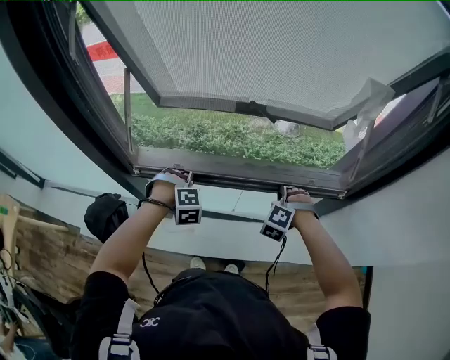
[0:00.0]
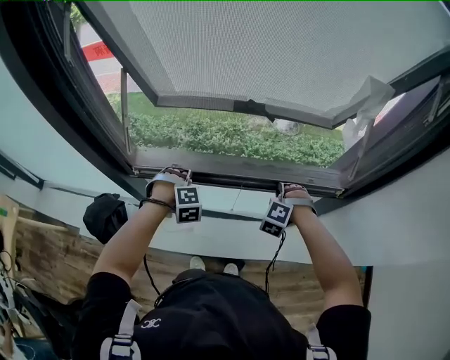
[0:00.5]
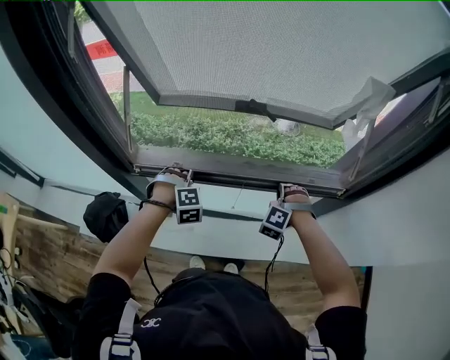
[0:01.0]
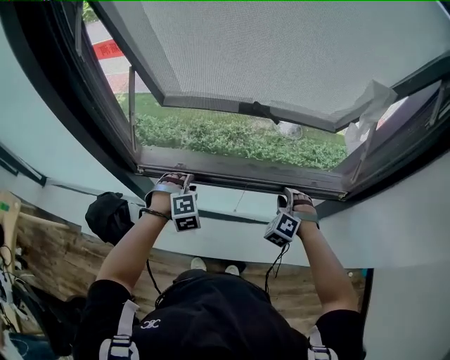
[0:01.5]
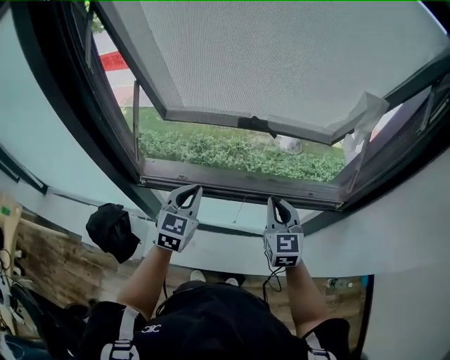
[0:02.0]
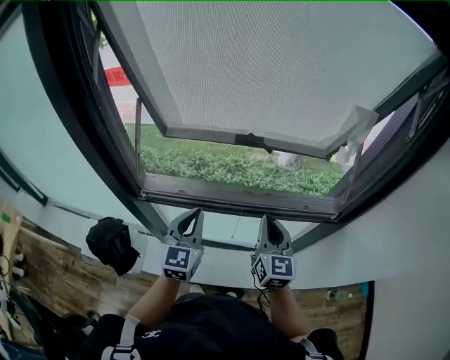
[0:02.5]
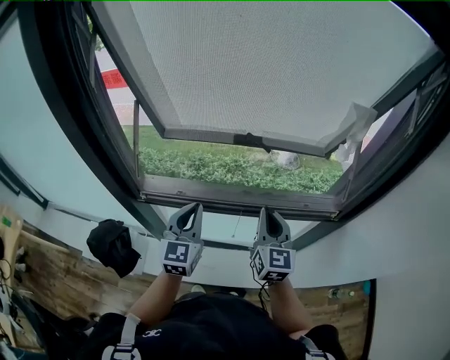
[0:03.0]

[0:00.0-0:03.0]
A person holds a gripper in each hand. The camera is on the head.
0:00.0 to 0:01.5: The right gripper opens up, while the left gripper opens.
0:01.5 to 0:03.0: Both grippers travel together upward, some 15 cm. The right gripper rolls clockwise, seen from behind, by roughly 70 degrees, and closes its fingers, while the left gripper points its fingers roughly 50 degrees further upward, and closes.

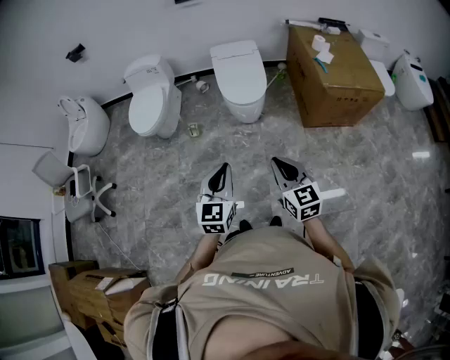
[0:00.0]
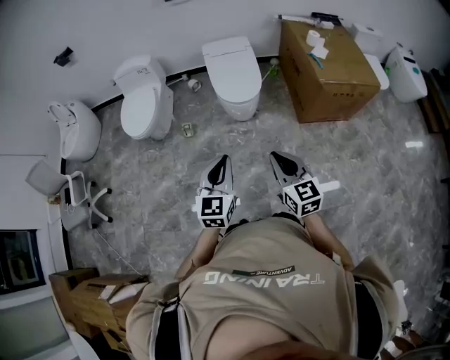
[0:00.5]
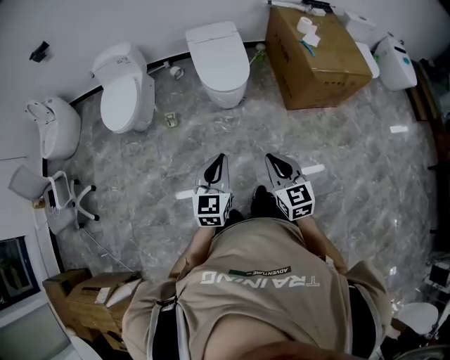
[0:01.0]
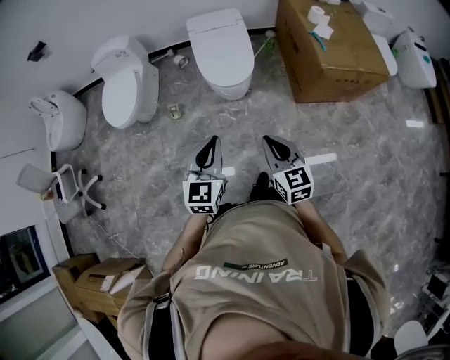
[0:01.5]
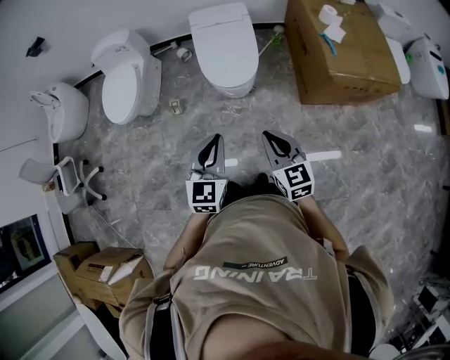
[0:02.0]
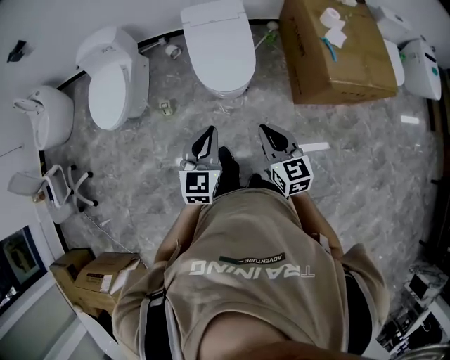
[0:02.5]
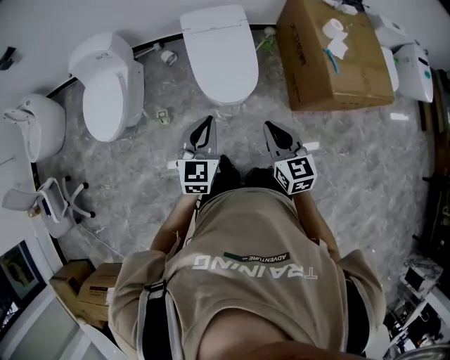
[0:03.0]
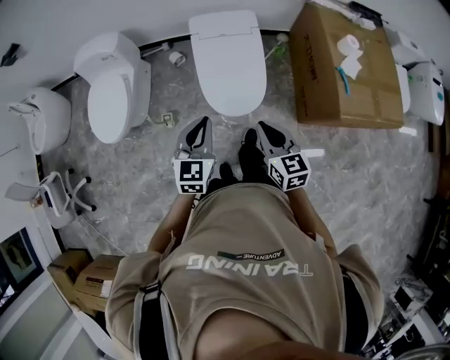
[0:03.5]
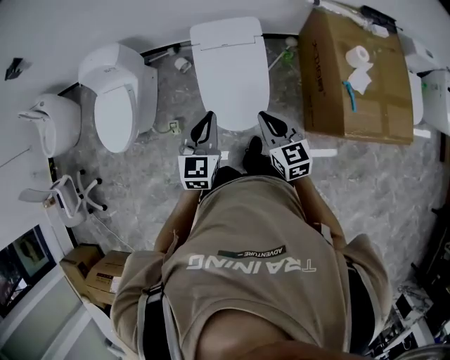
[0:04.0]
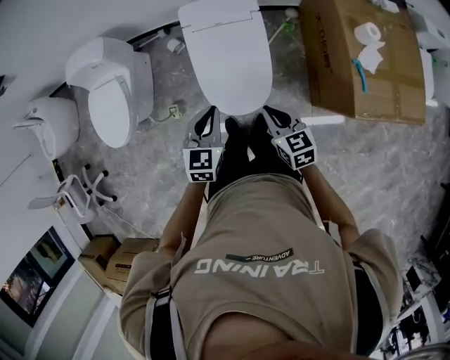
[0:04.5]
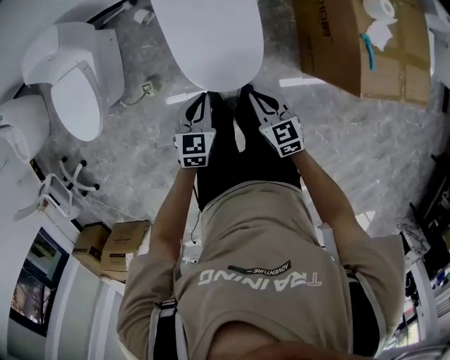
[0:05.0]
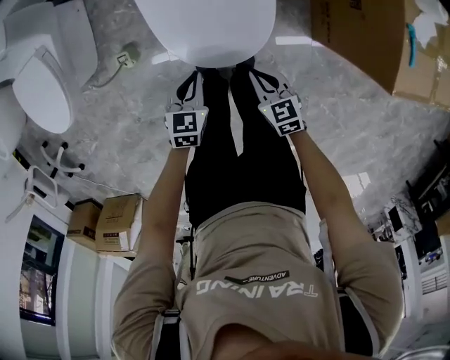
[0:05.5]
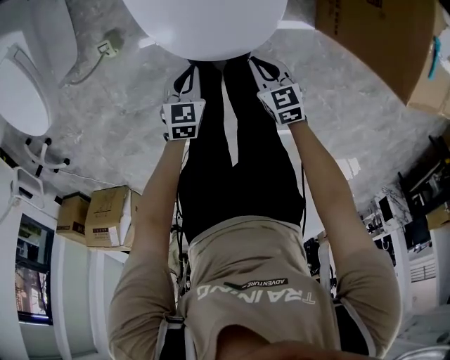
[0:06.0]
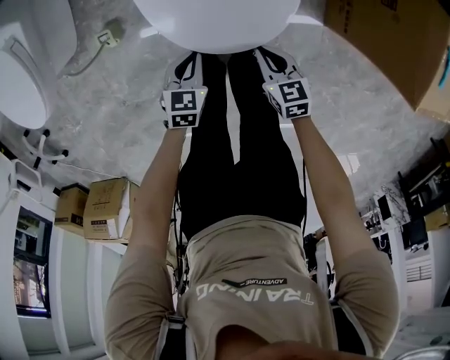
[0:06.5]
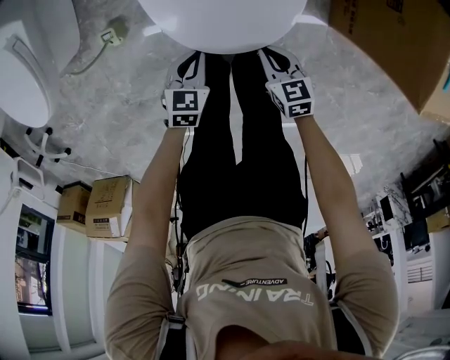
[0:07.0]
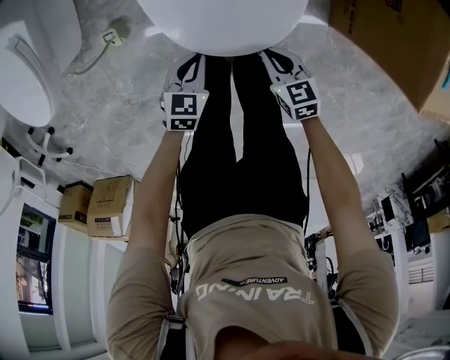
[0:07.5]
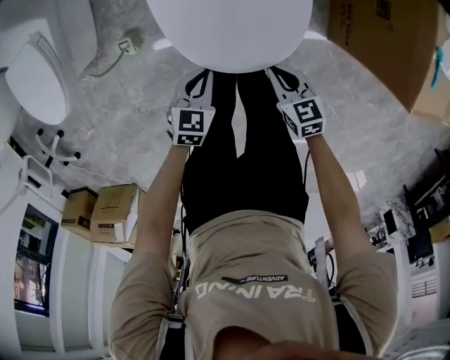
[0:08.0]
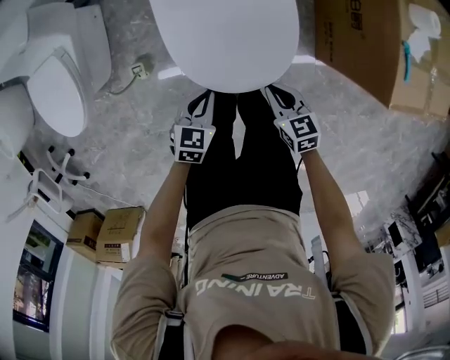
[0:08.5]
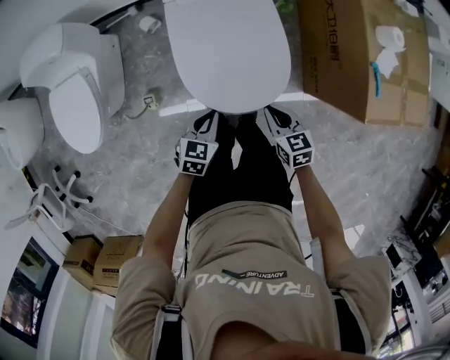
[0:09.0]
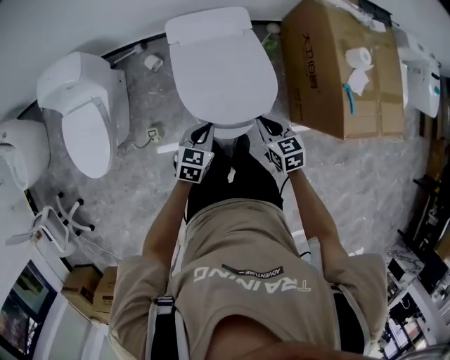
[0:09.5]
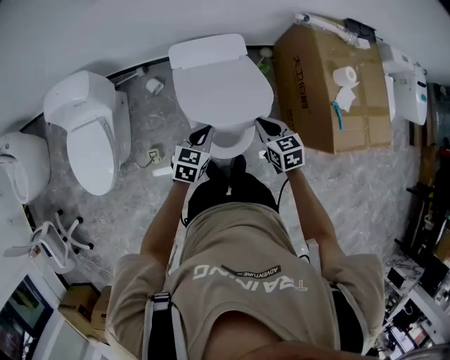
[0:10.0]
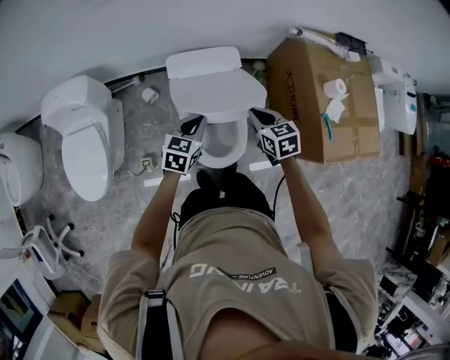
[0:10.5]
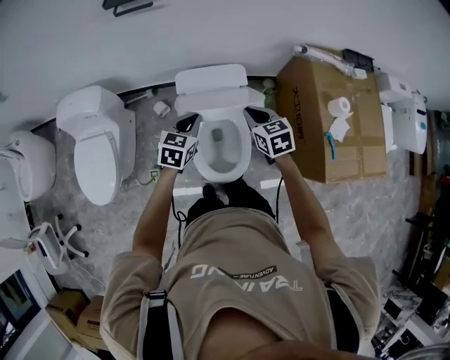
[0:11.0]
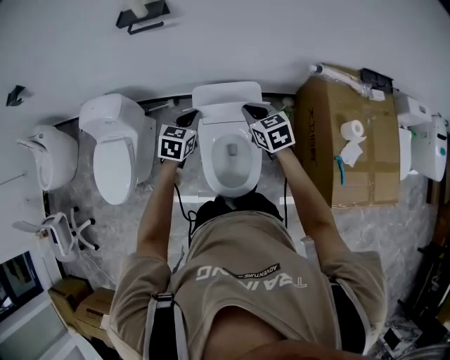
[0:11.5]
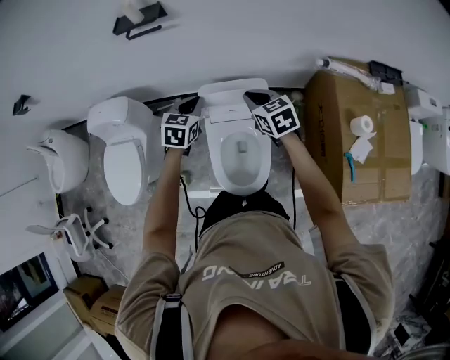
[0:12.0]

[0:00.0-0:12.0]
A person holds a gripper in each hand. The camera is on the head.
0:00.0 to 0:02.0: The right gripper goes approximately 20 cm forward, while the left gripper moves forward and to the right, about 25 cm.
0:02.0 to 0:04.0: The grippers both shift forward by roughly 40 cm.
0:04.0 to 0:06.0: Both grippers move downward, roughly 50 cm. The right gripper swivels approximately 30 degrees, while the left gripper angles its fingers downward, by roughly 30 degrees.
0:06.0 to 0:08.0: The grippers both shift upward by roughly 5 cm.
0:08.0 to 0:10.0: The two grippers go roughly 35 cm upward and forward.
0:10.0 to 0:12.0: Both grippers move forward and upward, about 25 cm.

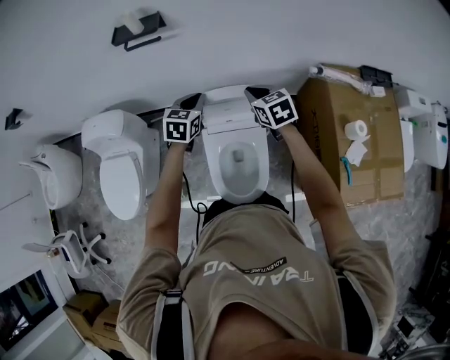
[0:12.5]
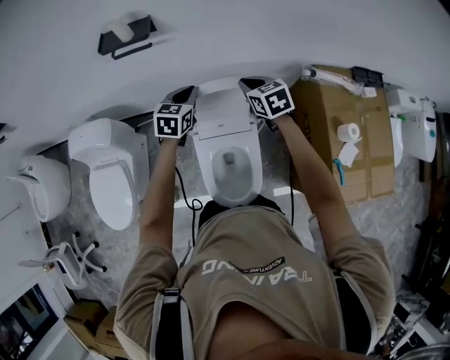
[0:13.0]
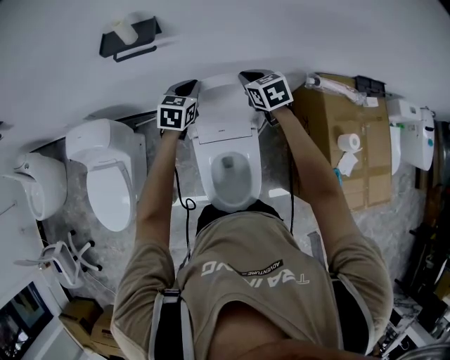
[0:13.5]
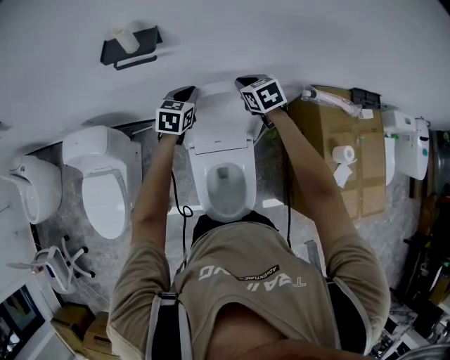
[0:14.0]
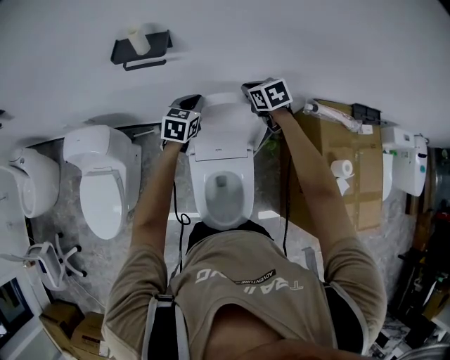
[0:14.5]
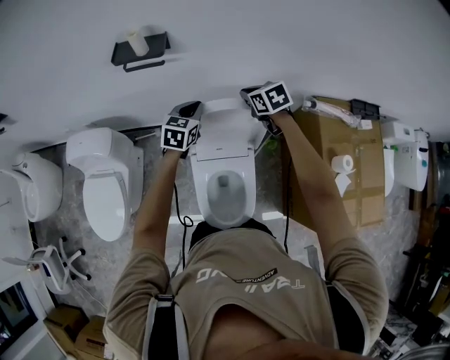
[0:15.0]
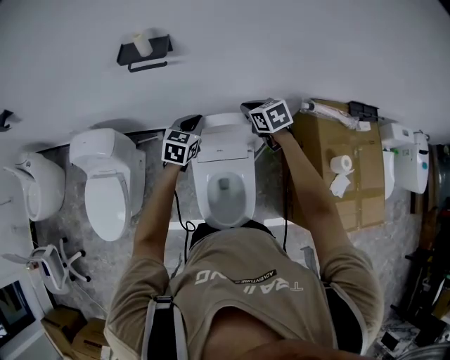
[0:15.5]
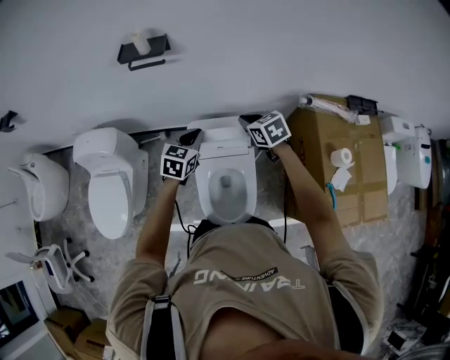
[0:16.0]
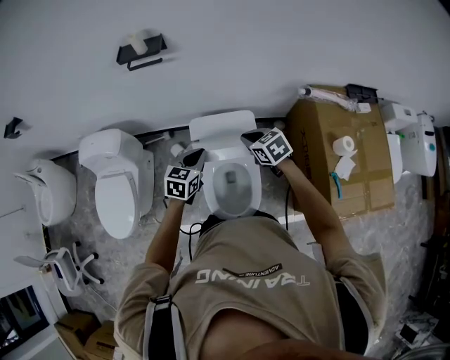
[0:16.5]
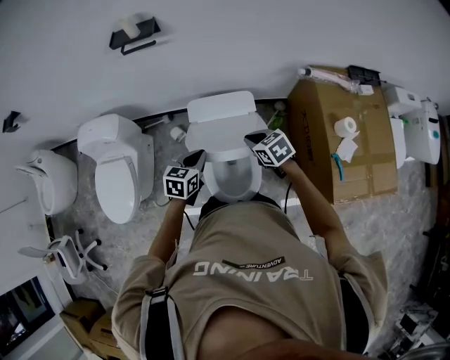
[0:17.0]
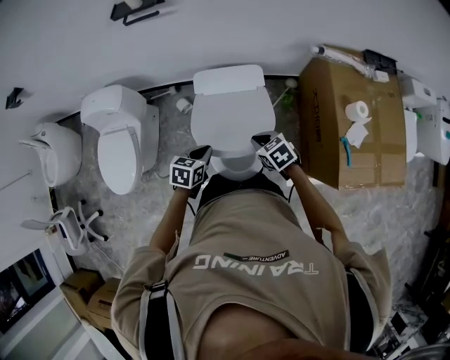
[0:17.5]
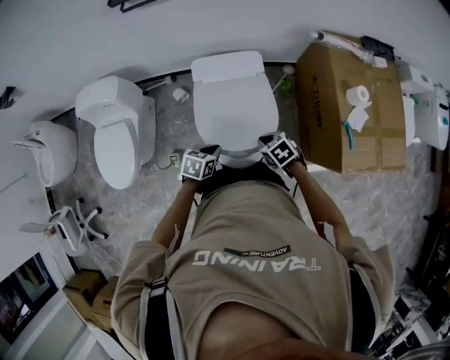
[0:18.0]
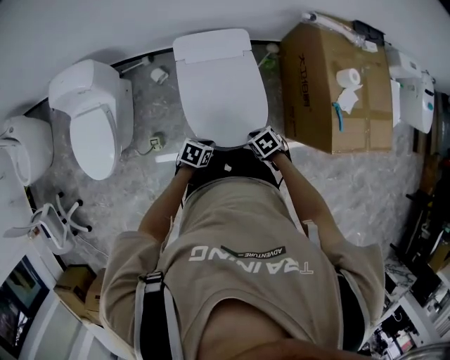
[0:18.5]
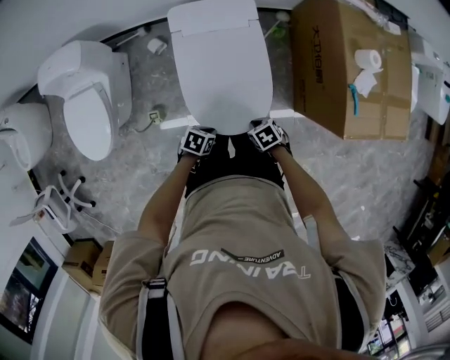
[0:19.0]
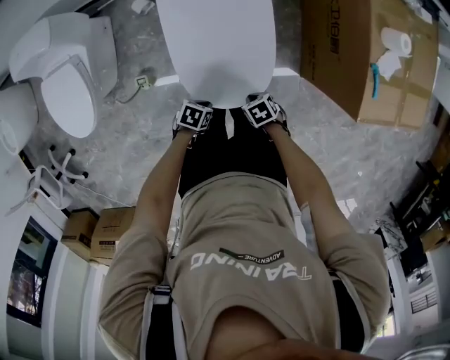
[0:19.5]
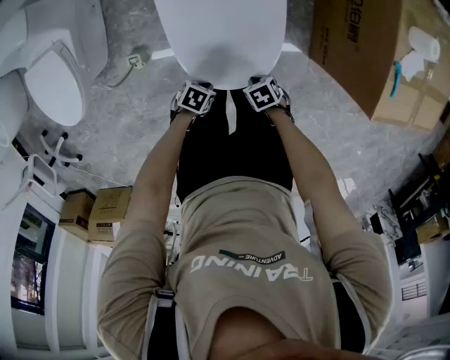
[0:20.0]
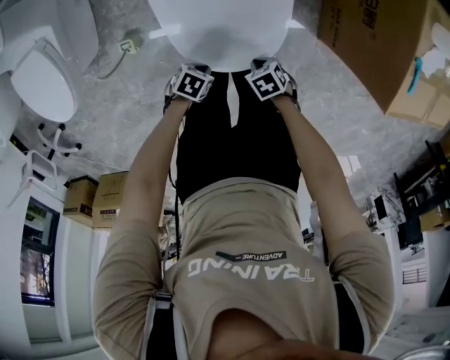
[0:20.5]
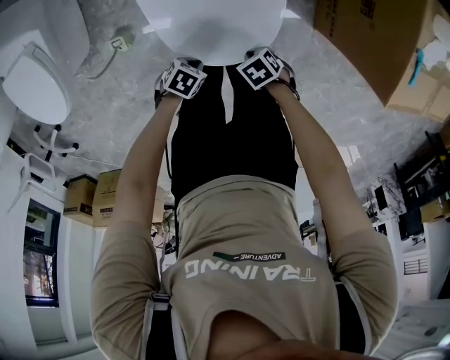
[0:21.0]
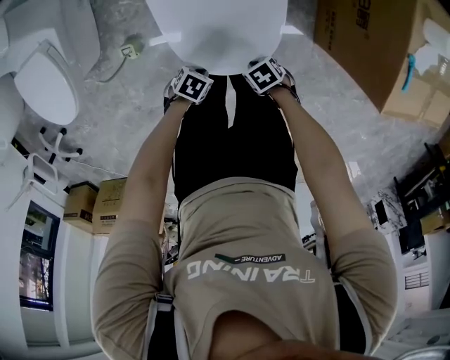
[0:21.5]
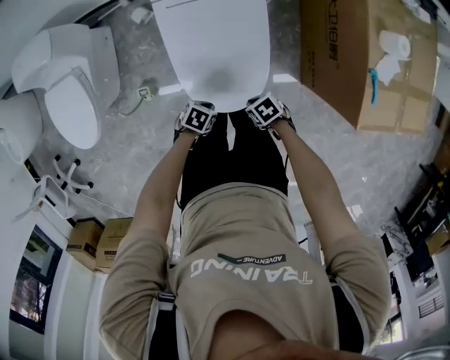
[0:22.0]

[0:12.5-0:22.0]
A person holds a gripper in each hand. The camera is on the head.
0:12.5 to 0:14.5: The grippers both shift forward by some 15 cm.
0:14.5 to 0:16.5: Both grippers move backward, roughly 25 cm.
0:16.5 to 0:18.0: Both grippers travel together backward and downward, about 25 cm. The left gripper turns by roughly 30 degrees.
0:18.0 to 0:20.0: Both grippers travel together downward, some 30 cm. The right gripper turns by about 30 degrees; the left gripper swivels about 30 degrees.
0:20.0 to 0:22.0: Both grippers move upward, roughly 5 cm.

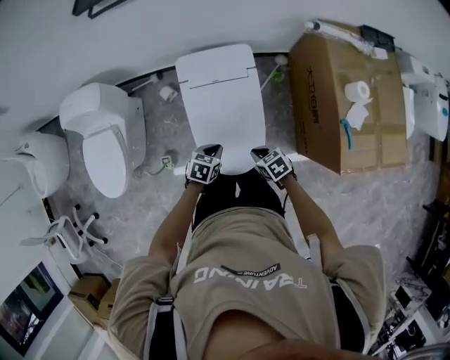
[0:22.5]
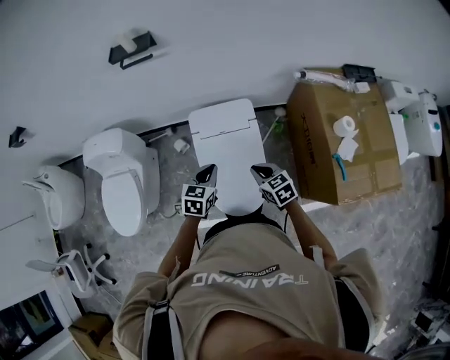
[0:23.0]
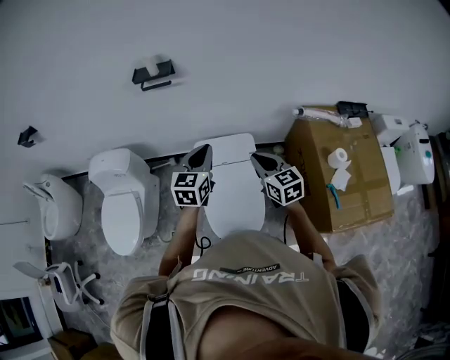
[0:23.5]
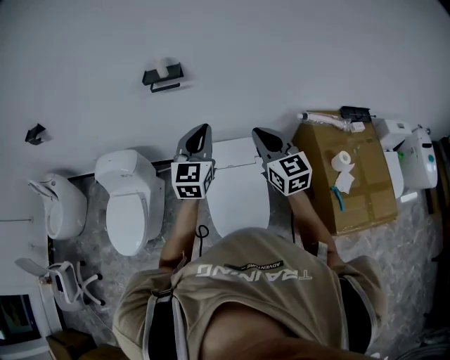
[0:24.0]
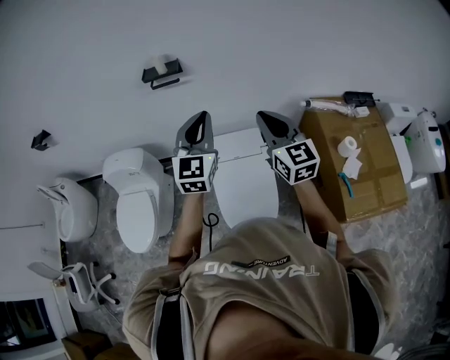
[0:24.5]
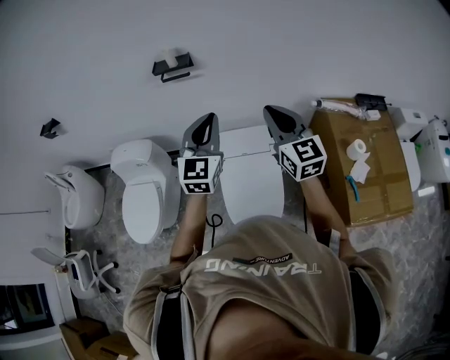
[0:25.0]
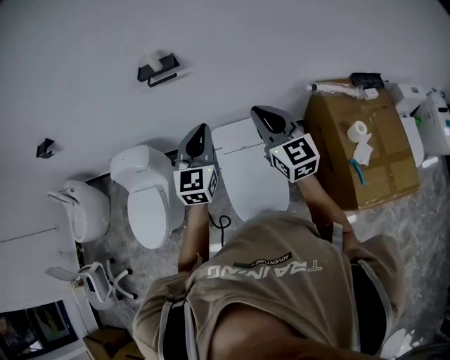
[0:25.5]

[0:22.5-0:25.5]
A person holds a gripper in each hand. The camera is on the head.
0:22.5 to 0:24.0: The grippers both shift upward by roughly 50 cm. The right gripper tilts its fingers some 50 degrees upward, while the left gripper points its fingers approximately 50 degrees further upward.
0:24.0 to 0:25.5: There are only small adjustments of the grippers.
